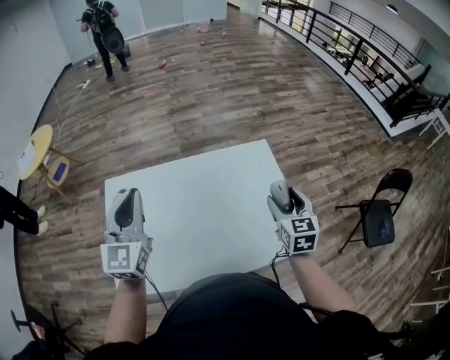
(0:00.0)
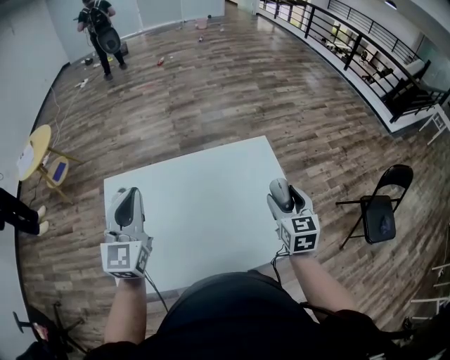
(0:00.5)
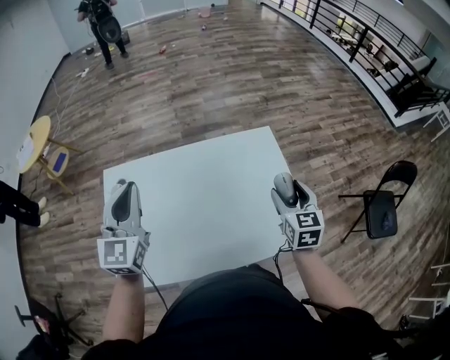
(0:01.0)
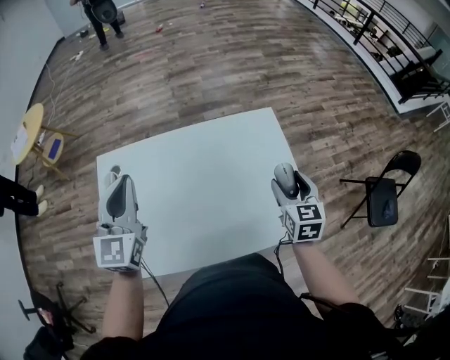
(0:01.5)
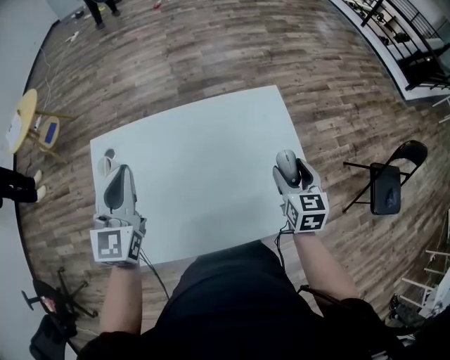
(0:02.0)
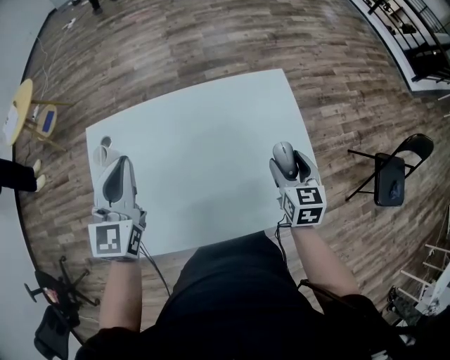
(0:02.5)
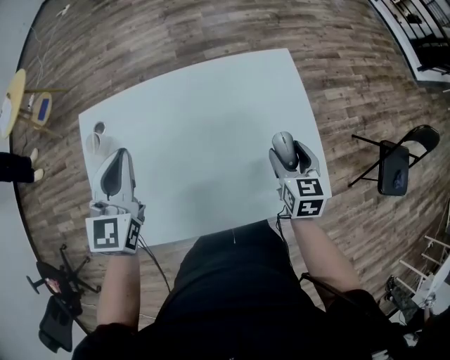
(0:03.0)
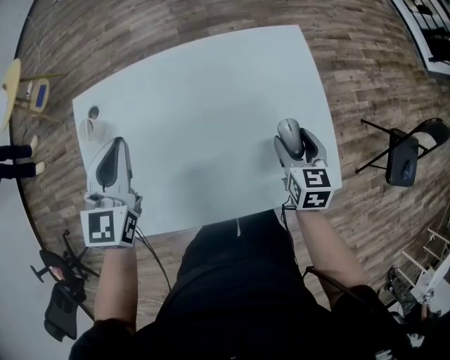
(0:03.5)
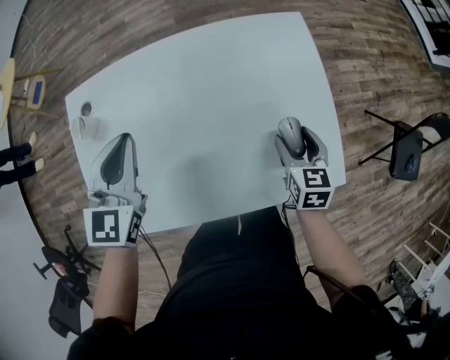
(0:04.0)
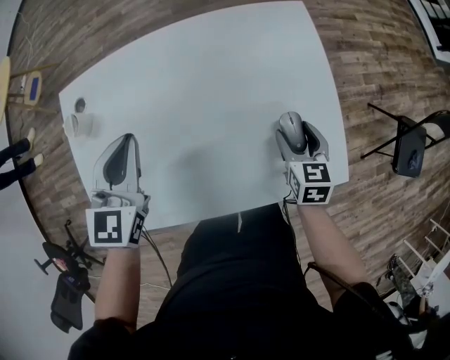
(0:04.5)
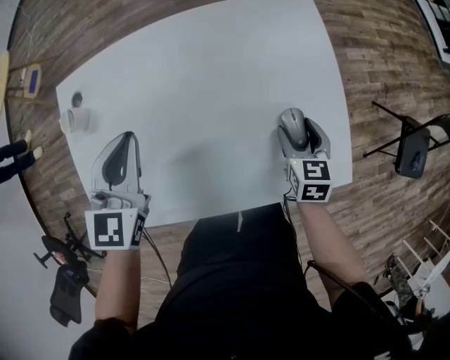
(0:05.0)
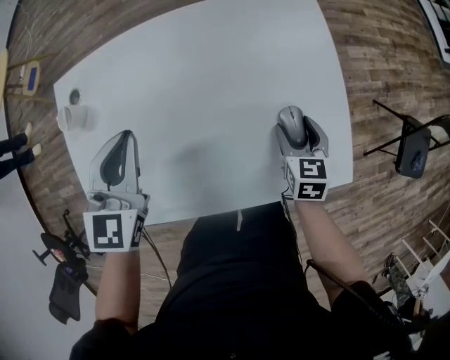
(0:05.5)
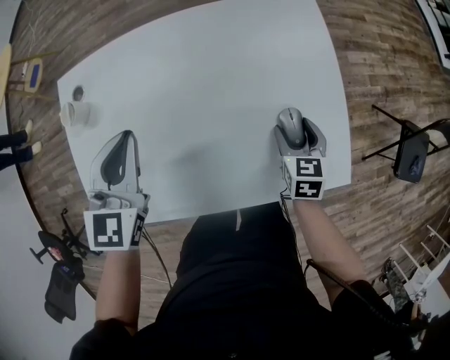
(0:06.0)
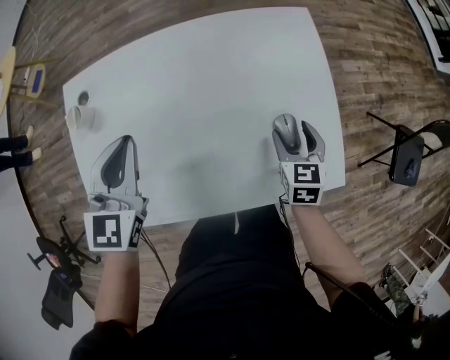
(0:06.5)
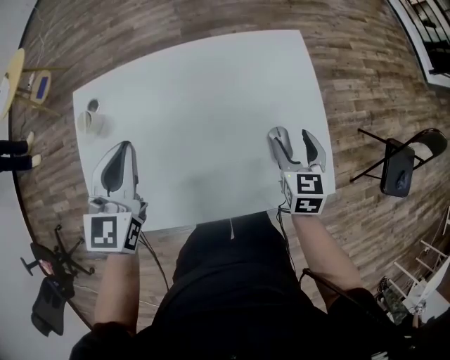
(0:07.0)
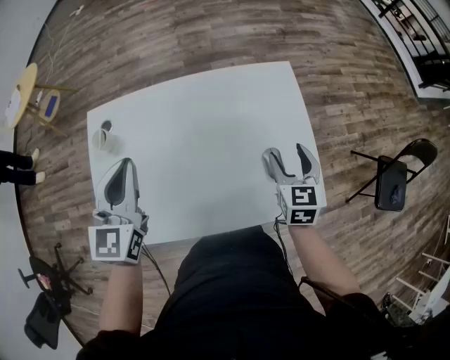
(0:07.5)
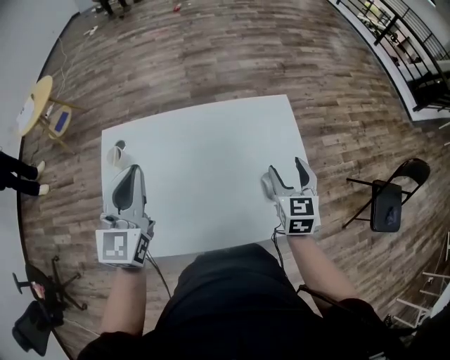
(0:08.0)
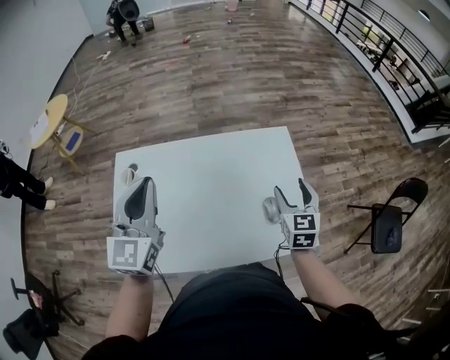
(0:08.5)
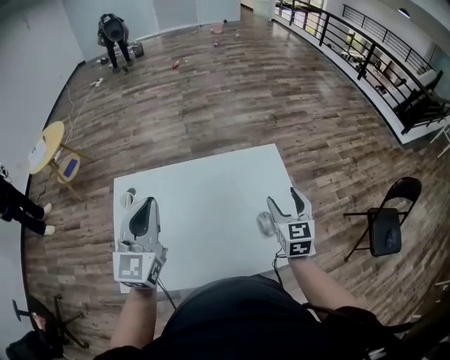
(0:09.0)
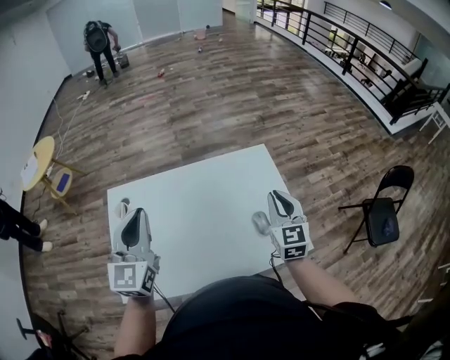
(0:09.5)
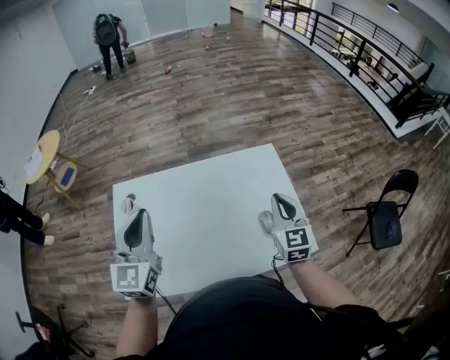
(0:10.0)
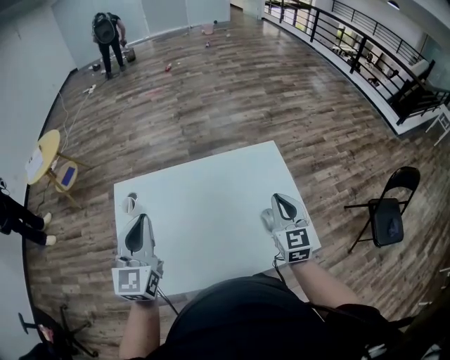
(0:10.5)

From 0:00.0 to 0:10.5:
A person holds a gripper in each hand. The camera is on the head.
From 0:00.0 to 0:02.0: The right gripper travels downward by some 5 cm.
From 0:02.0 to 0:04.0: The grippers both shift downward by about 10 cm.
From 0:04.0 to 0:06.5: The grippers move only a little.
From 0:06.5 to 0:08.5: Both grippers move upward, approximately 15 cm. The right gripper turns by some 20 degrees. The left gripper turns by some 20 degrees.
From 0:08.5 to 0:10.5: The right gripper changes place by roughly 5 cm, and closes.

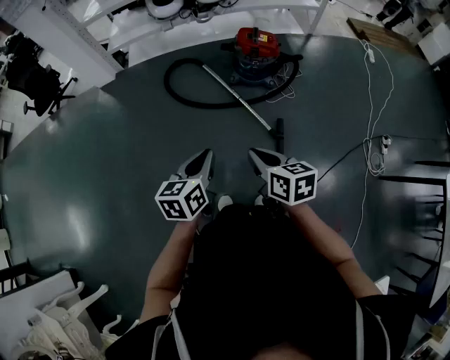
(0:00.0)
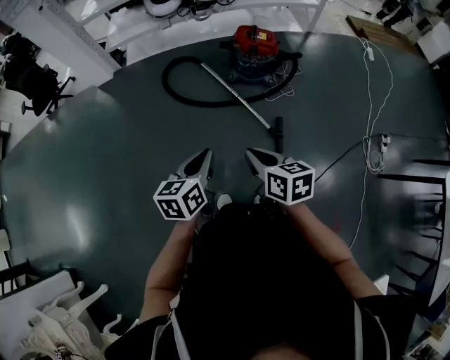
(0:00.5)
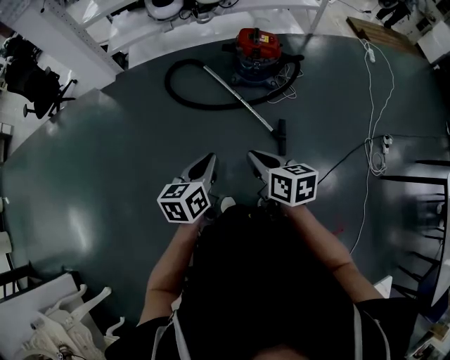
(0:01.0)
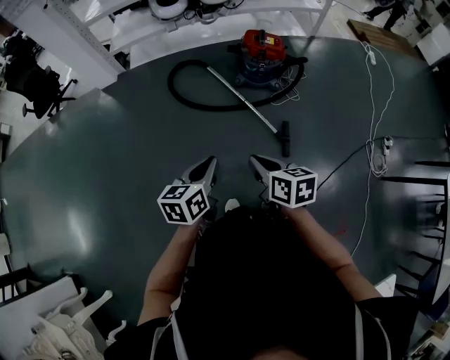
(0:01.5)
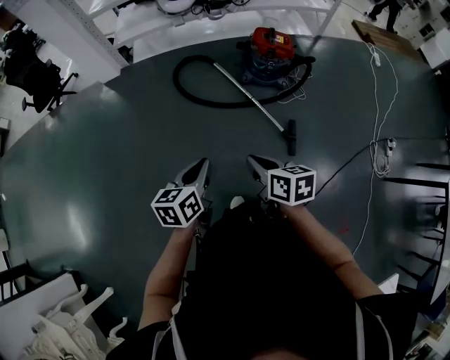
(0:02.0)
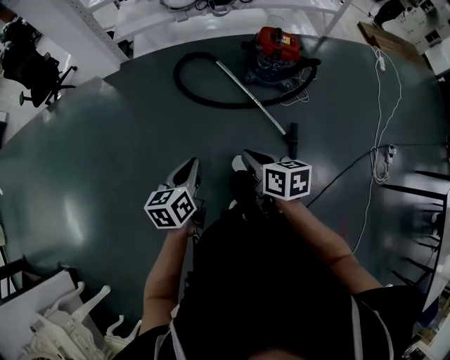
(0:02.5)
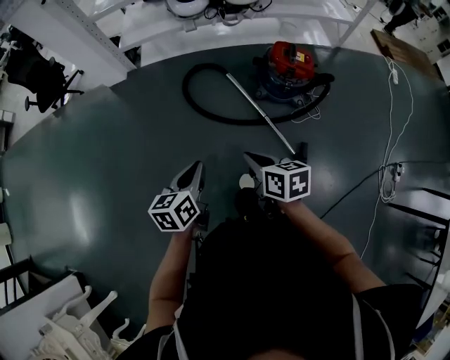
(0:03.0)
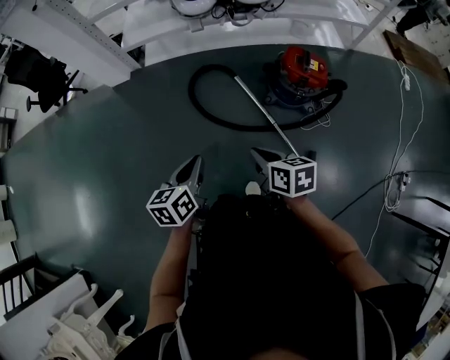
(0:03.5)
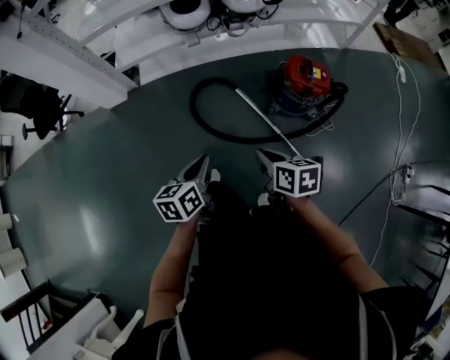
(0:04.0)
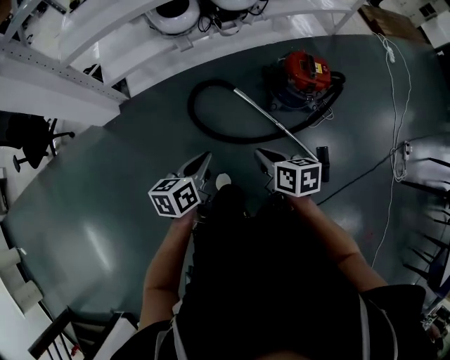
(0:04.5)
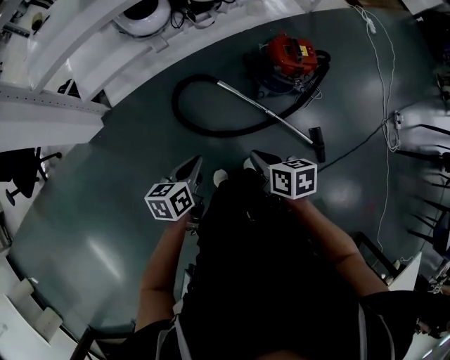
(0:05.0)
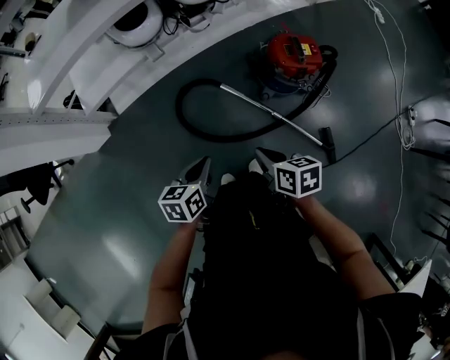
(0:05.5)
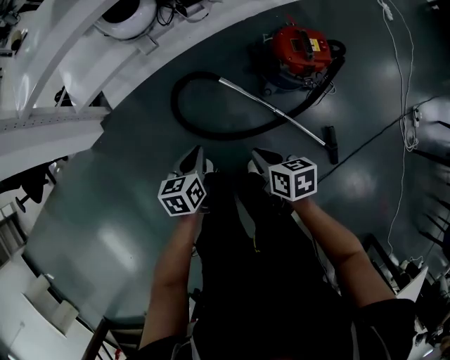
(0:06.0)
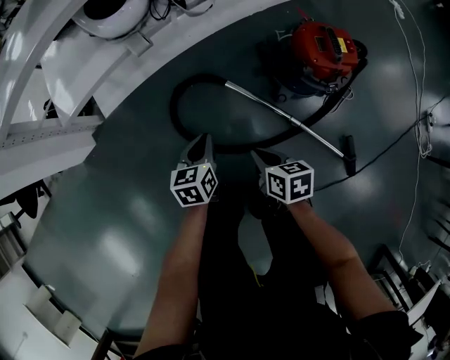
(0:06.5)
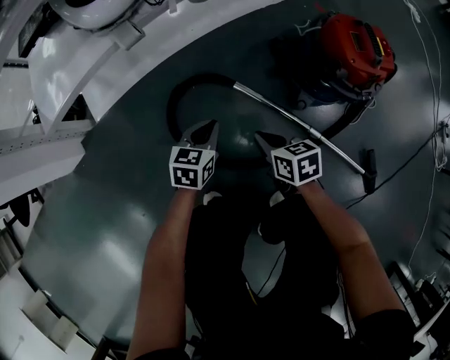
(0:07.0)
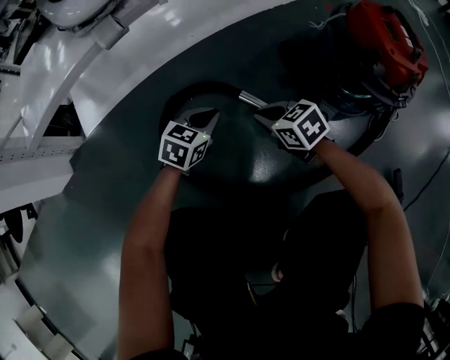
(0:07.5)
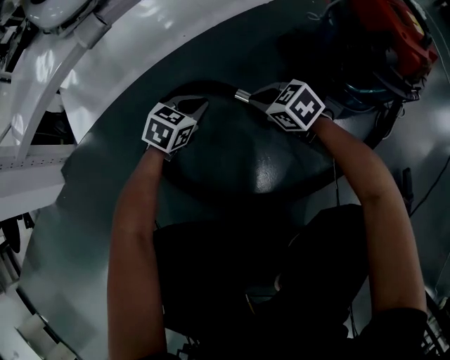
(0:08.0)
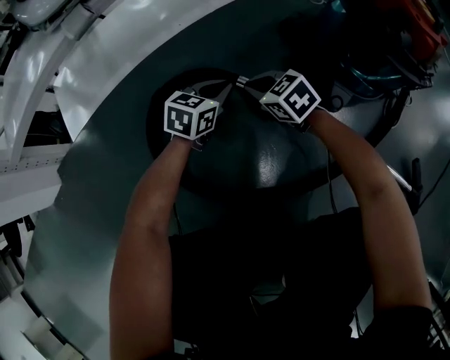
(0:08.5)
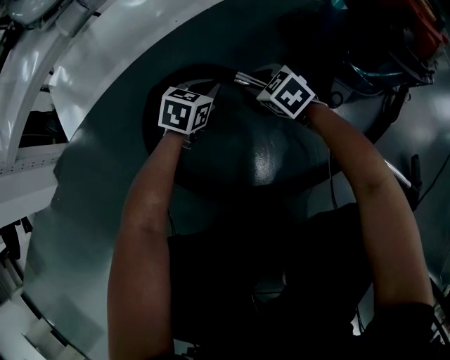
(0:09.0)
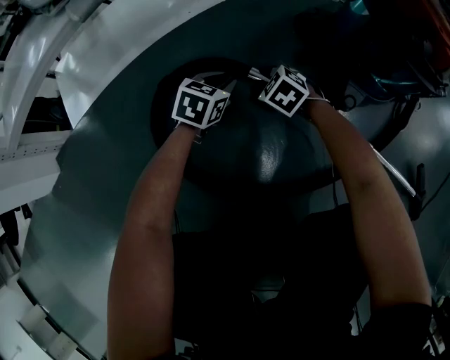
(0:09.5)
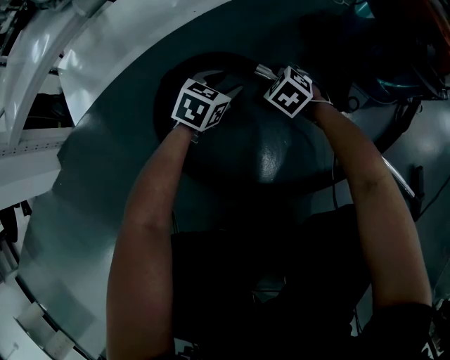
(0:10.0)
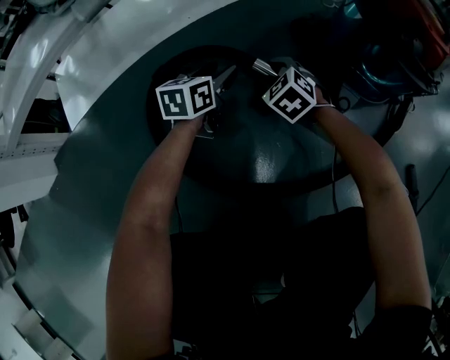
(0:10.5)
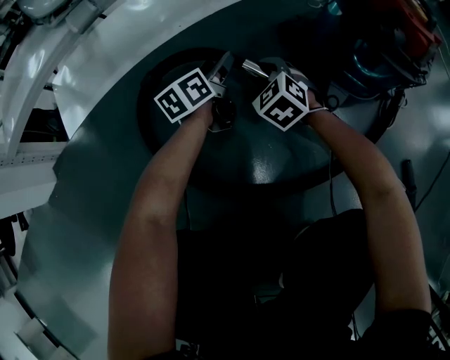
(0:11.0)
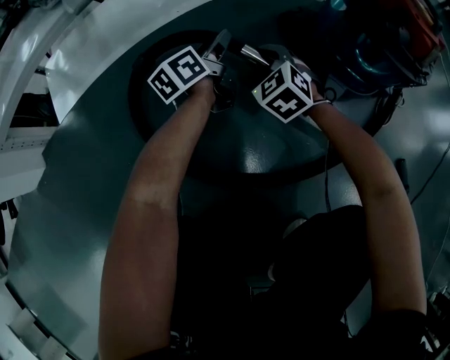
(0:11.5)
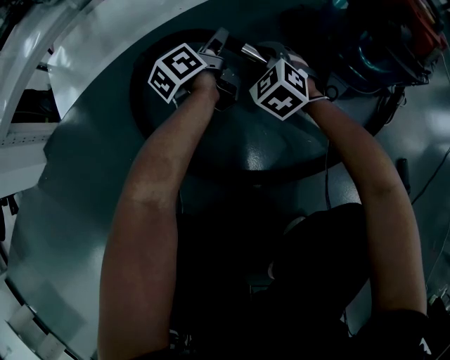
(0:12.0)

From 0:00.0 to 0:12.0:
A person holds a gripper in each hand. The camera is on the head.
From 0:00.0 to 0:02.0: Both grippers move to the left, some 10 cm.
From 0:02.0 to 0:04.0: Both grippers travel together forward, about 40 cm.
From 0:04.0 to 0:06.0: The grippers both shift forward and downward by approximately 25 cm. The left gripper changes its angle by roughly 20 degrees.
From 0:06.0 to 0:08.0: The two grippers go about 60 cm downward and forward. The left gripper rolls clockwise, seen from behind, by roughly 50 degrees. Meanwhile the right gripper rolls counterclockwise, seen from behind, by roughly 40 degrees.
From 0:08.0 to 0:10.0: The left gripper moves downward, roughly 5 cm, and opens; the right gripper shifts some 10 cm downward, turns by roughly 30 degrees, and opens up.
From 0:10.0 to 0:12.0: The left gripper heads upward and forward, covering roughly 10 cm, and twists roughly 70 degrees counterclockwise, seen from behind, while the right gripper moves upward, approximately 10 cm.

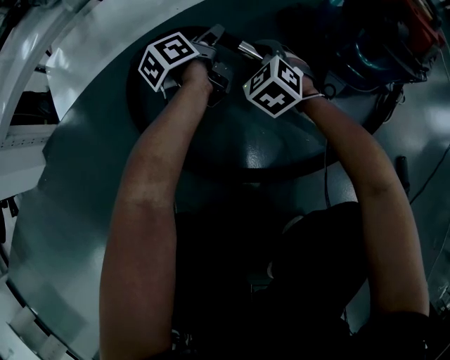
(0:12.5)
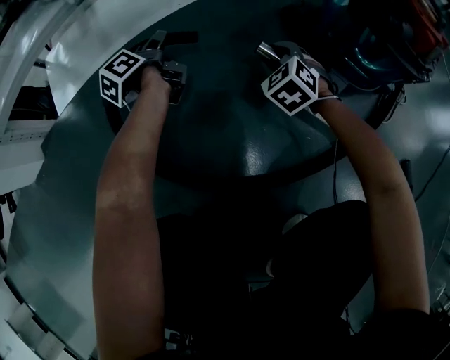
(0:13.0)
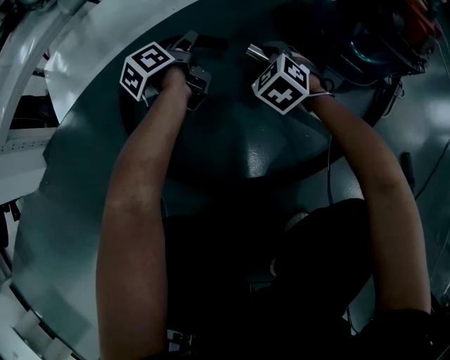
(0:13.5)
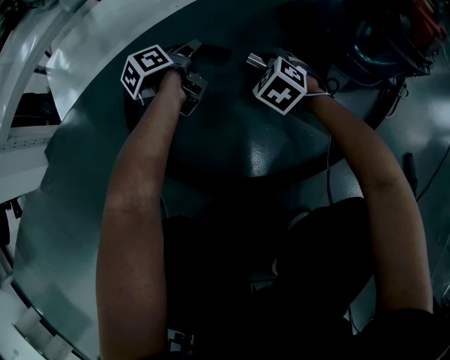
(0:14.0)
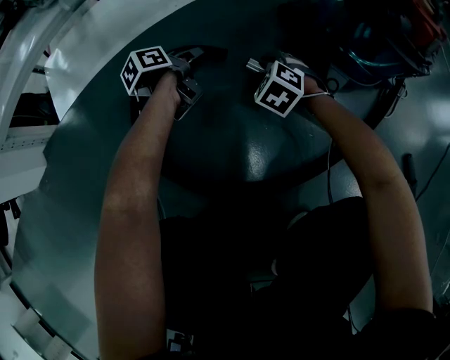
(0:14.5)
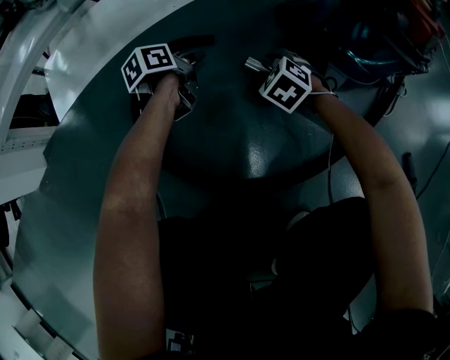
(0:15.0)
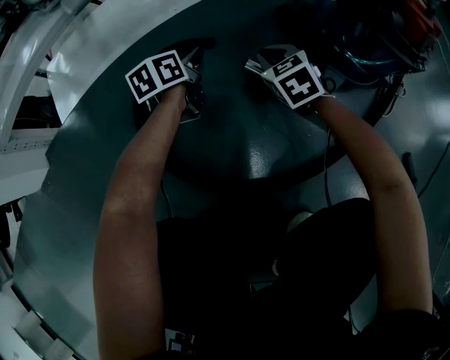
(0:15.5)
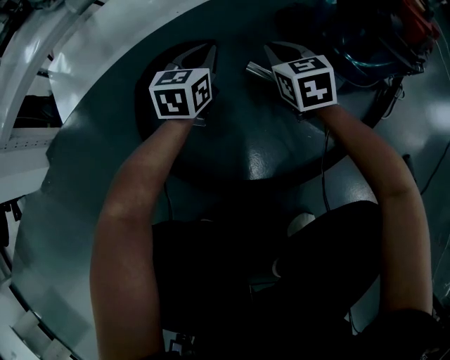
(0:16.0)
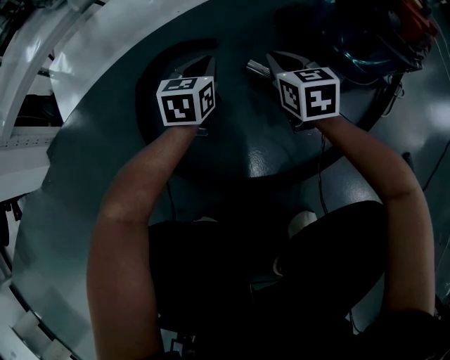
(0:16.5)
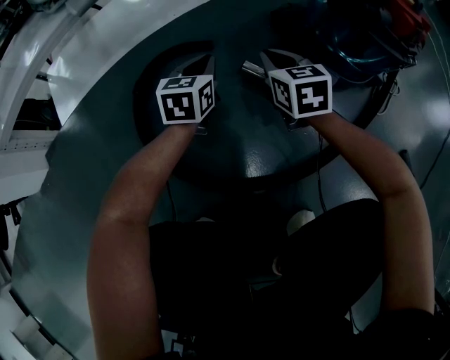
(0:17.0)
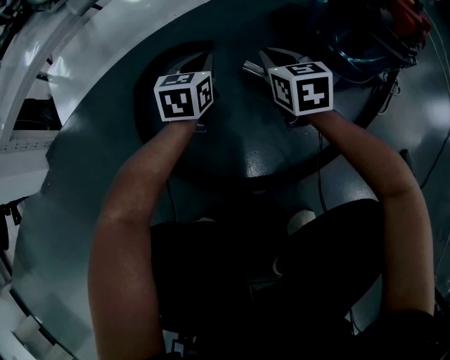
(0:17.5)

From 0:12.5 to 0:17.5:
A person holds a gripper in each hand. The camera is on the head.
From 0:12.5 to 0:15.0: Both grippers travel together downward, approximately 5 cm. The left gripper goes to the left and returns, some 15 cm each way, rotates some 20 degrees, and closes.
From 0:15.0 to 0:17.5: The right gripper is displaced upward by roughly 10 cm, rolls clockwise, seen from behind, by approximately 40 degrees, and closes, while the left gripper travels upward by roughly 5 cm, and rotates around the line of its fingers by about 50 degrees, clockwise from behind.
